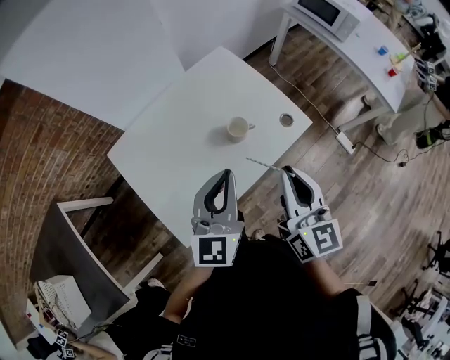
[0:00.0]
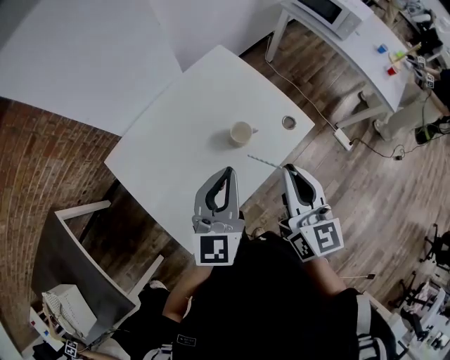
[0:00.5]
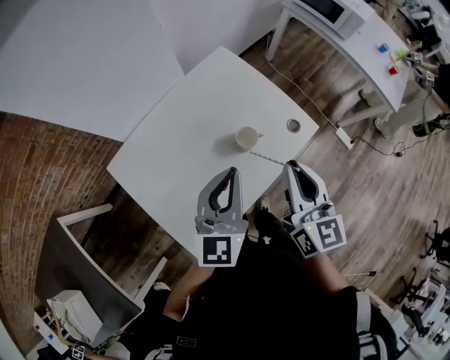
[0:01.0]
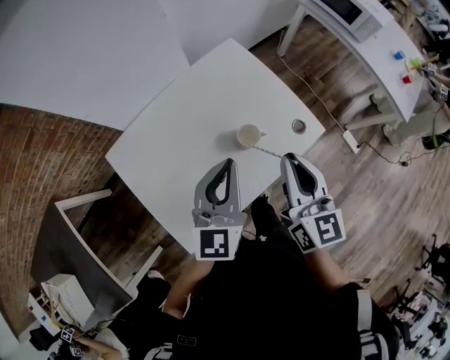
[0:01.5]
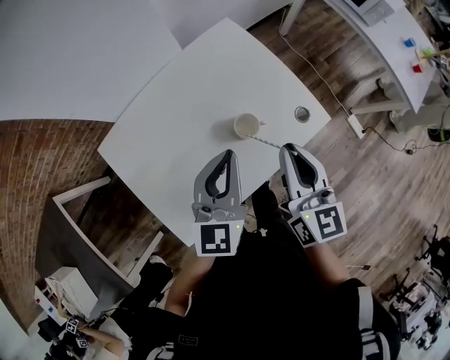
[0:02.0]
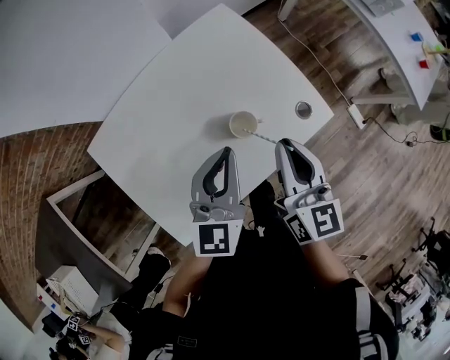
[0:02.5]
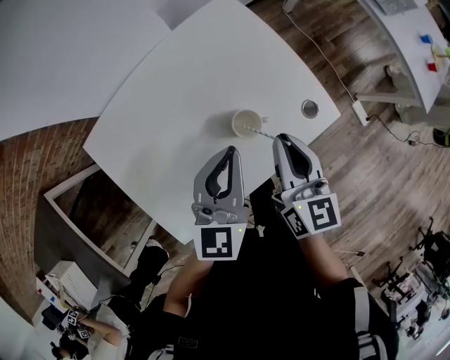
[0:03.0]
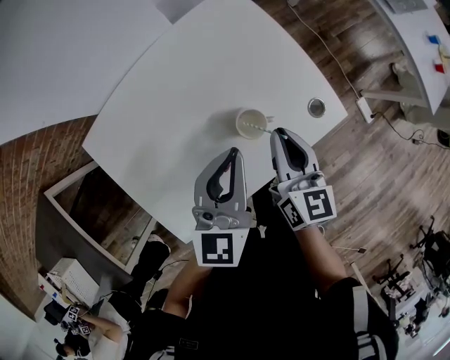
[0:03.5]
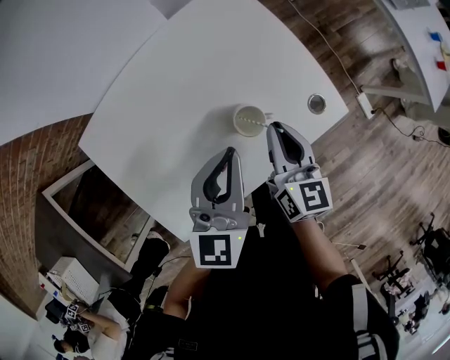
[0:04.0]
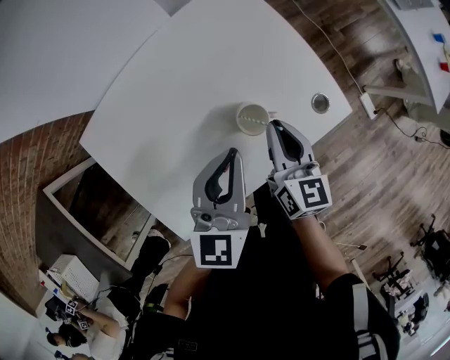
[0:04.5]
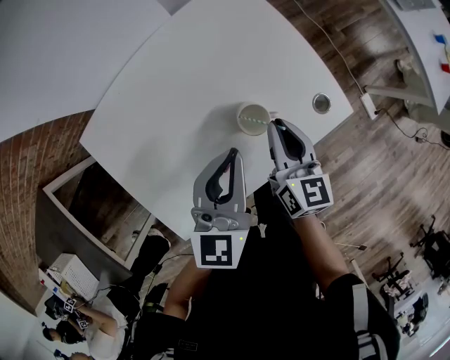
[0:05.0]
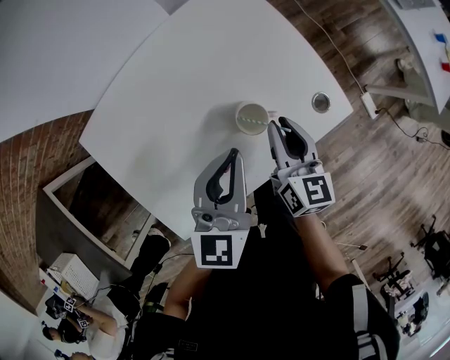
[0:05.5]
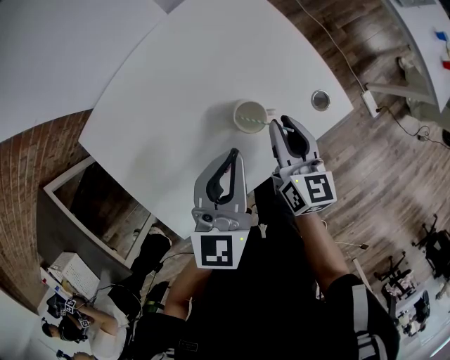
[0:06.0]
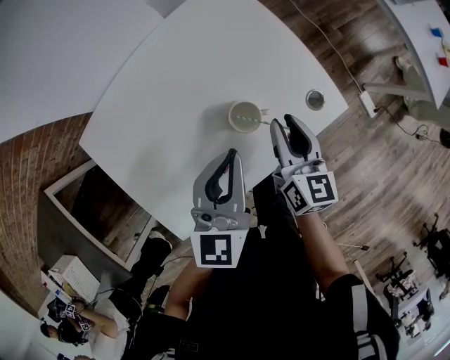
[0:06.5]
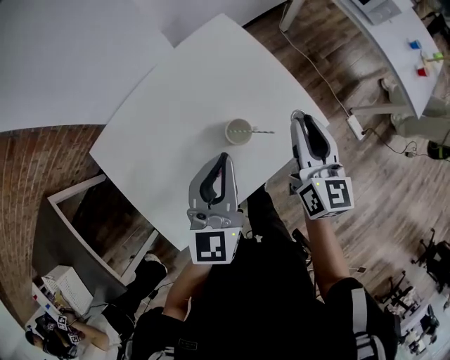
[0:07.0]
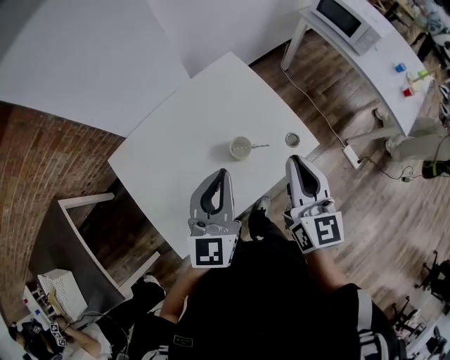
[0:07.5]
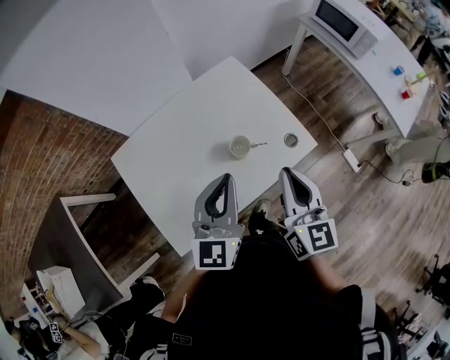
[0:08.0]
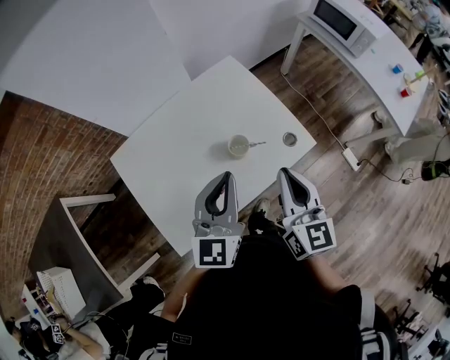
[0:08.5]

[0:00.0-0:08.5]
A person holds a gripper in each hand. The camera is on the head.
0:00.0 to 0:02.0: Both grippers travel together forward and downward, about 15 cm.
0:02.0 to 0:04.0: The right gripper goes some 15 cm downward and forward. Meanwhile the left gripper travels downward by approximately 5 cm.
0:04.0 to 0:06.5: The grippers move only a little.
0:06.5 to 0:08.5: The left gripper moves upward and backward, some 15 cm. Meanwhile the right gripper heads upward and backward, covering roughly 25 cm, and closes.

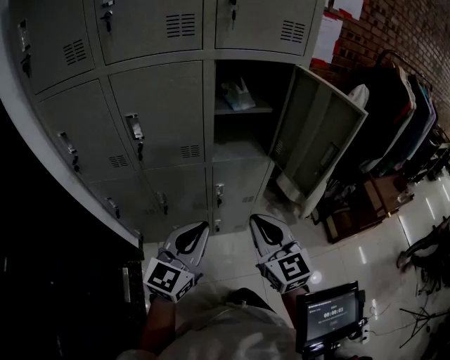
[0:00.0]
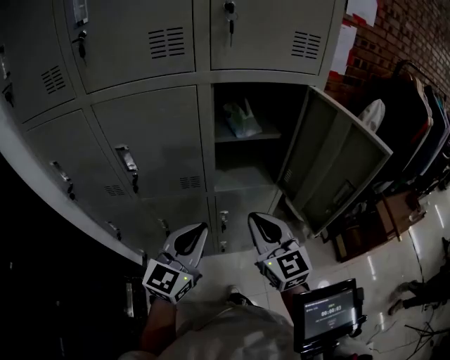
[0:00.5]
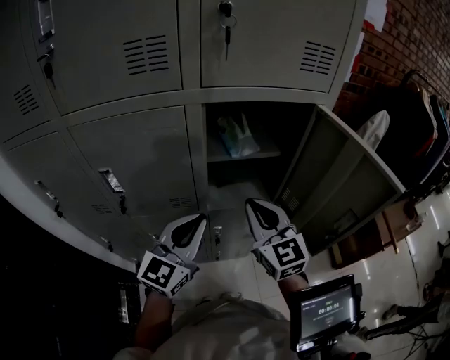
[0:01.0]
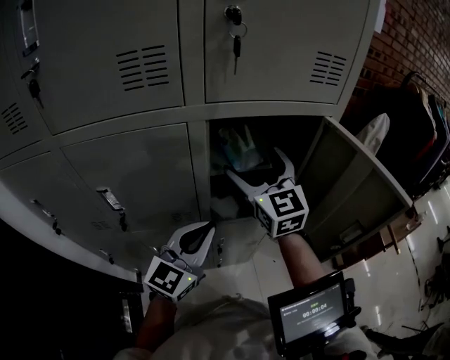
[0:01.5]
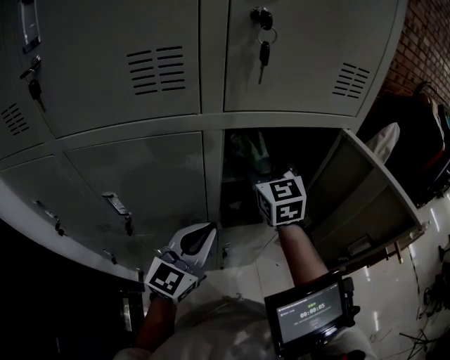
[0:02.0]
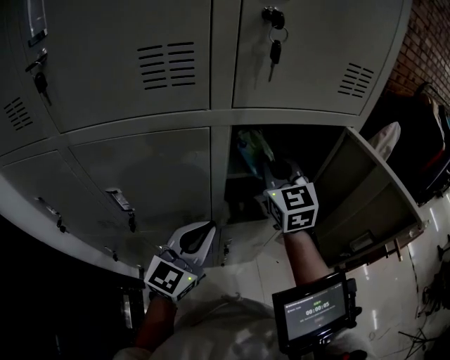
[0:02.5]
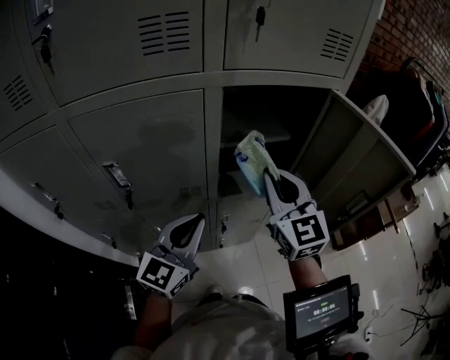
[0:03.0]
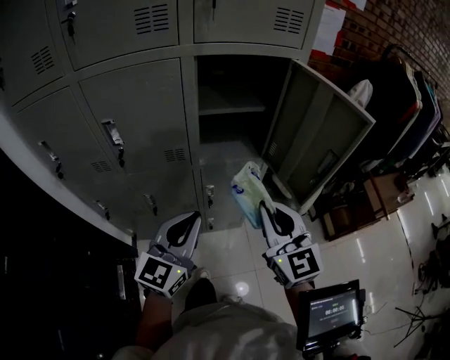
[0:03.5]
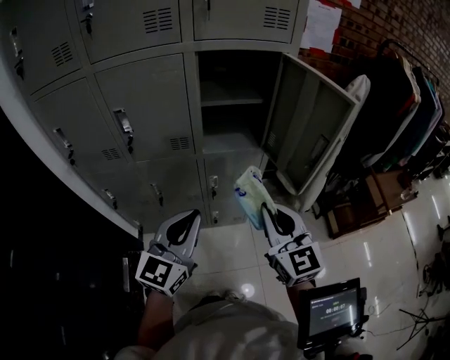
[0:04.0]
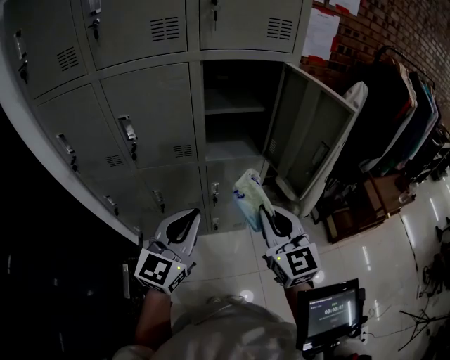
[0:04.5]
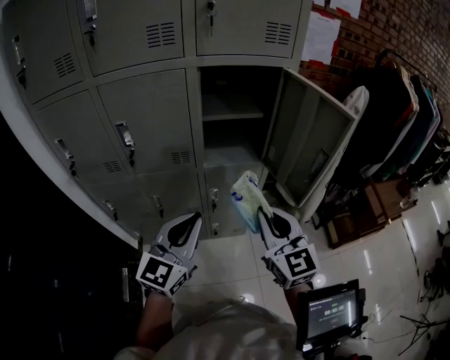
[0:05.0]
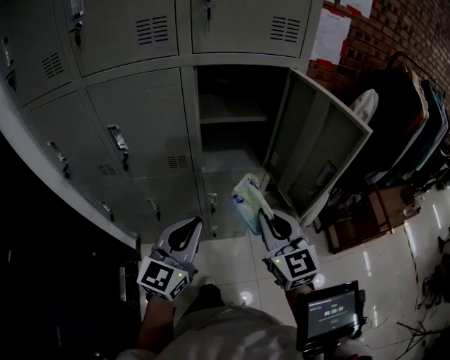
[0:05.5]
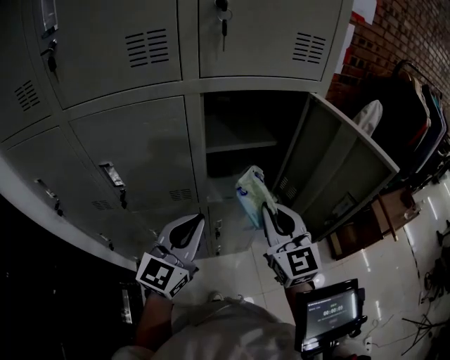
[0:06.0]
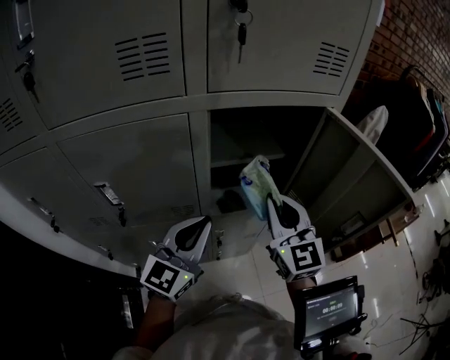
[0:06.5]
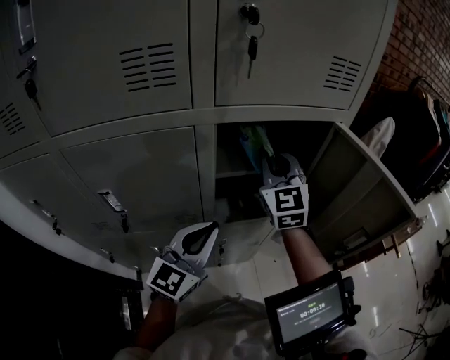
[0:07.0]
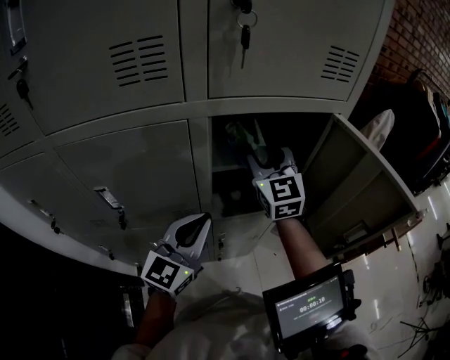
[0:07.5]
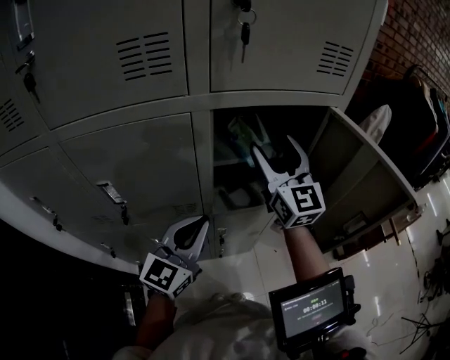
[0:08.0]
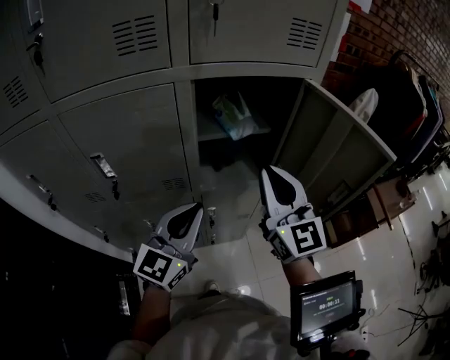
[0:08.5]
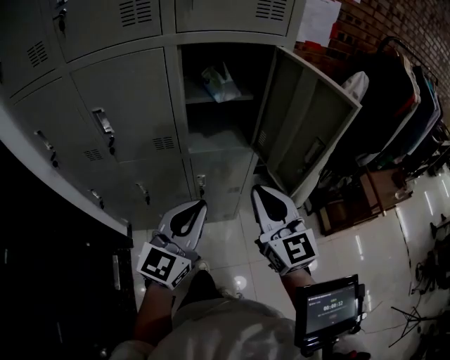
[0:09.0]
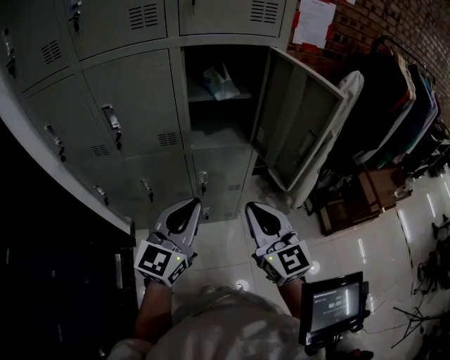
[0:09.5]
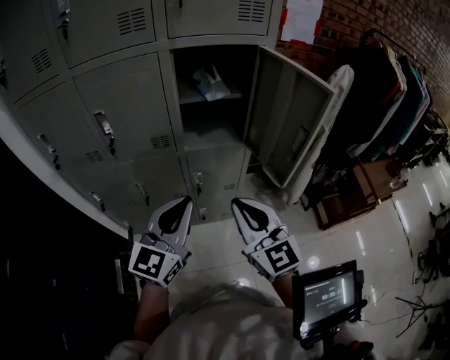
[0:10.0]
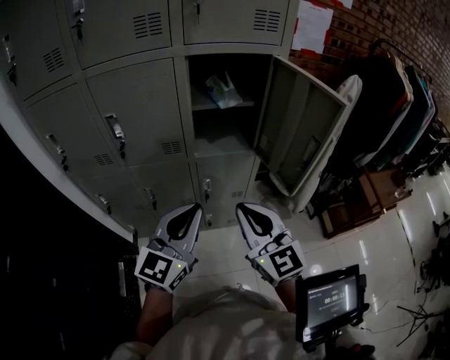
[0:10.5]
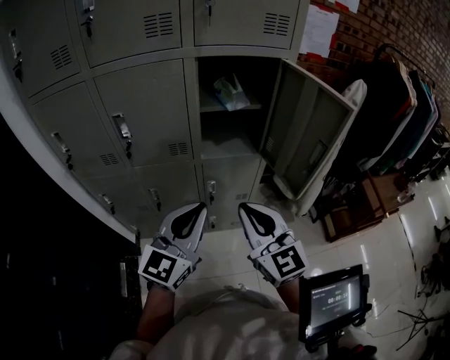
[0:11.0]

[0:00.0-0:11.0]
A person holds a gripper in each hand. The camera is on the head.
0:00.0 to 0:02.0: The left gripper shifts some 25 cm forward. Meanwhile the right gripper shifts about 40 cm forward, and opens.
0:02.0 to 0:03.5: The left gripper shifts some 20 cm backward, while the right gripper goes about 35 cm backward, and closes up.
0:05.5 to 0:07.5: The right gripper is displaced forward by approximately 30 cm, and opens up. Meanwhile the left gripper is displaced forward by roughly 20 cm.
0:07.5 to 0:09.0: The left gripper heads backward and to the right, covering about 20 cm, while the right gripper goes about 35 cm backward, and closes.
0:09.0 to 0:11.0: The left gripper moves roughly 5 cm; the right gripper is displaced to the left and backward by about 10 cm.

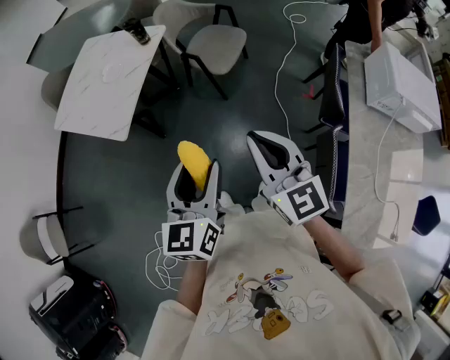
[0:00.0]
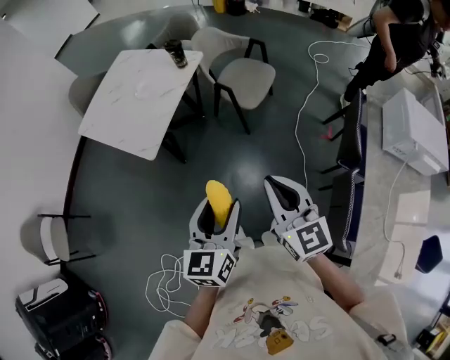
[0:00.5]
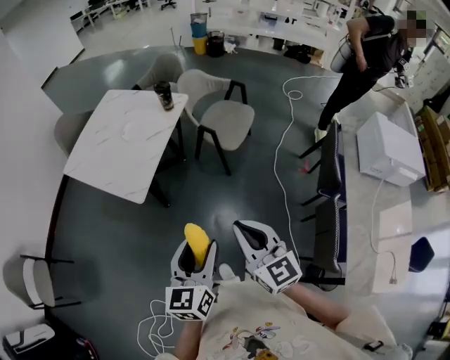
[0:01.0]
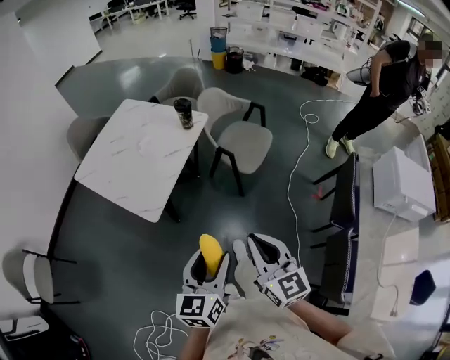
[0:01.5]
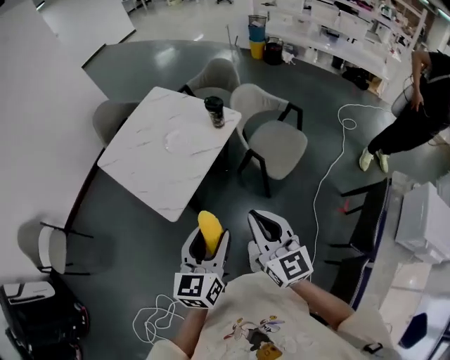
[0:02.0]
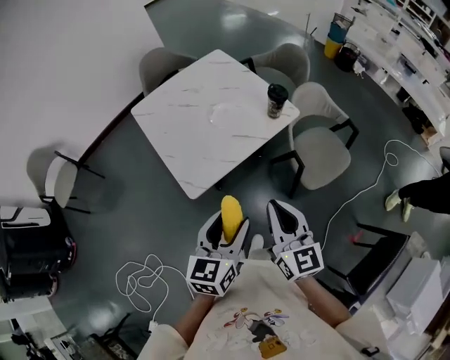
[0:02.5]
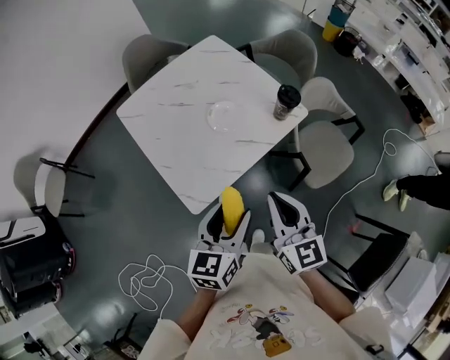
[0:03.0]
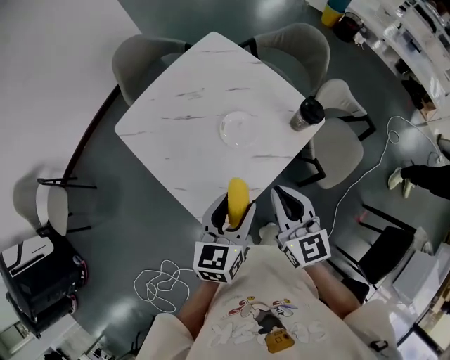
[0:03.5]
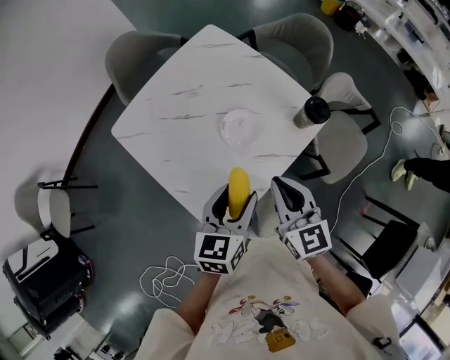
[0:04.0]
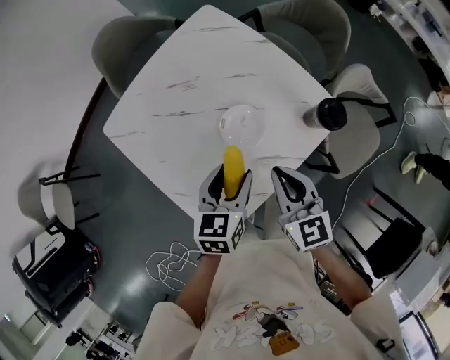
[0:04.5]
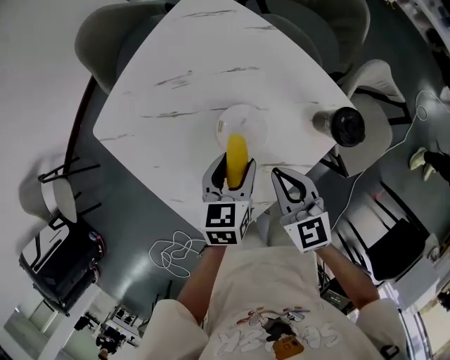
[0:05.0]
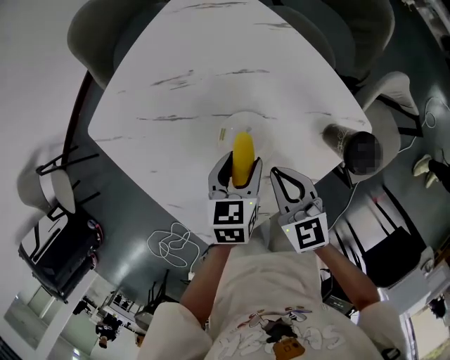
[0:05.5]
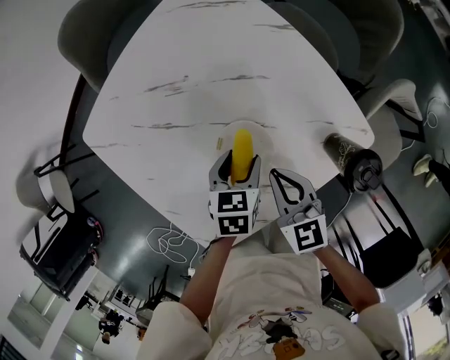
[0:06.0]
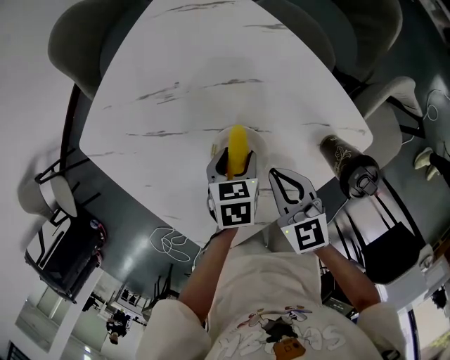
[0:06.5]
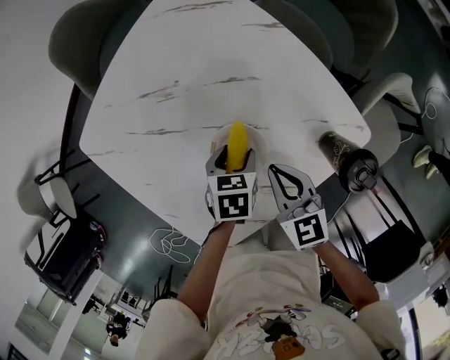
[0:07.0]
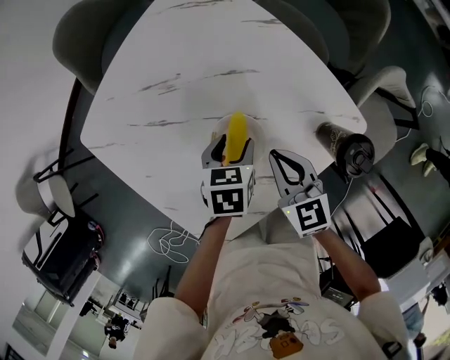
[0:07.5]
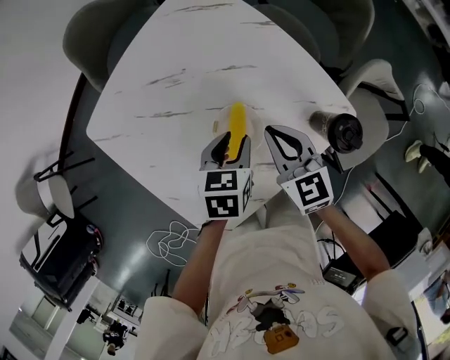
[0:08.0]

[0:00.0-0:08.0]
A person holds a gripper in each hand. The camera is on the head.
0:00.0 to 0:02.0: The grippers both shift forward and to the left by about 25 cm.
0:02.0 to 0:04.0: The two grippers go approximately 40 cm forward and to the left.
0:04.0 to 0:06.0: Both grippers move downward and forward, some 30 cm. The left gripper tips its fingers downward by some 30 degrees, while the right gripper changes its angle by approximately 20 degrees.
0:06.0 to 0:08.0: The grippers both shift upward by approximately 5 cm.
